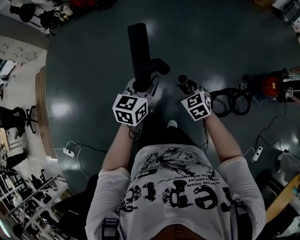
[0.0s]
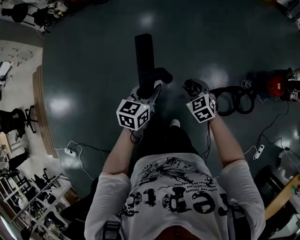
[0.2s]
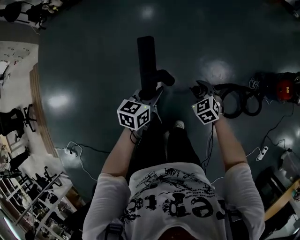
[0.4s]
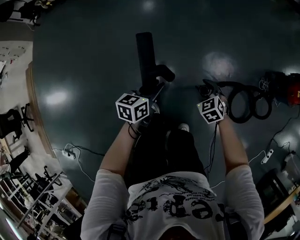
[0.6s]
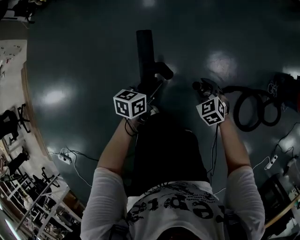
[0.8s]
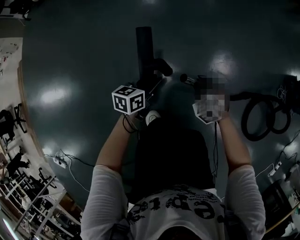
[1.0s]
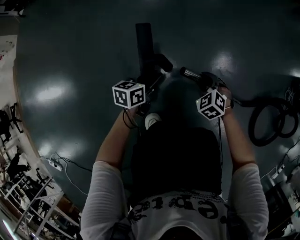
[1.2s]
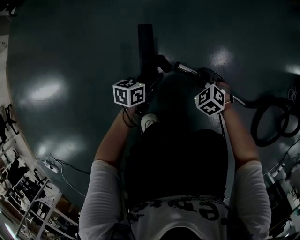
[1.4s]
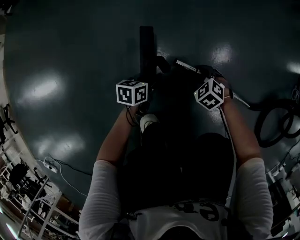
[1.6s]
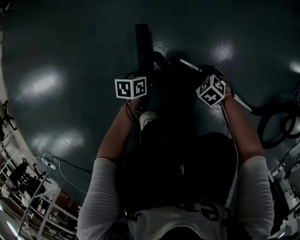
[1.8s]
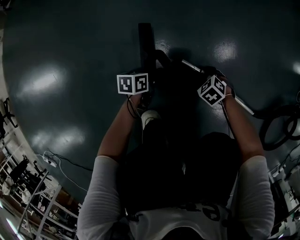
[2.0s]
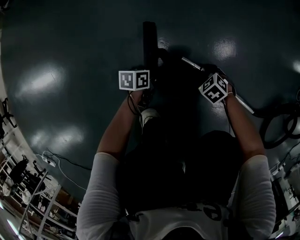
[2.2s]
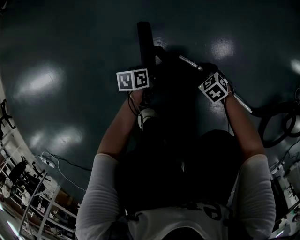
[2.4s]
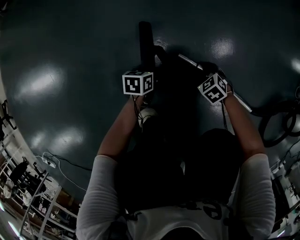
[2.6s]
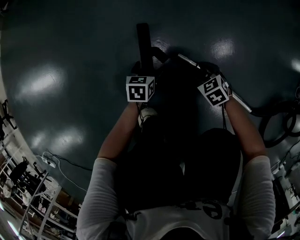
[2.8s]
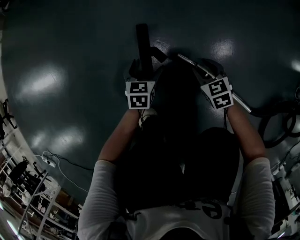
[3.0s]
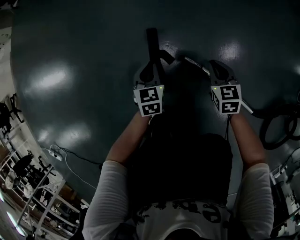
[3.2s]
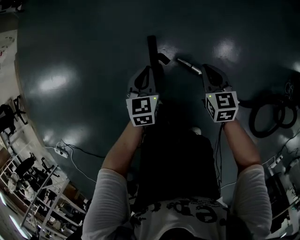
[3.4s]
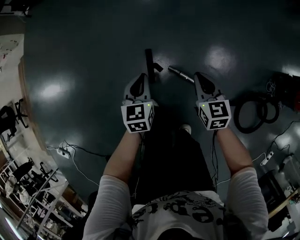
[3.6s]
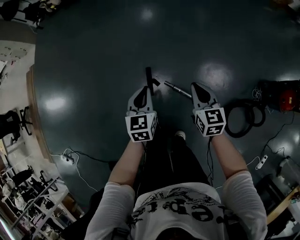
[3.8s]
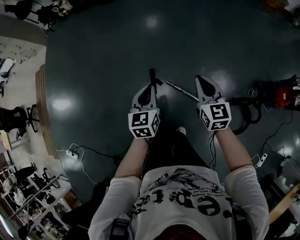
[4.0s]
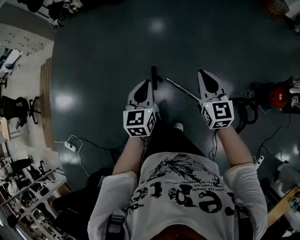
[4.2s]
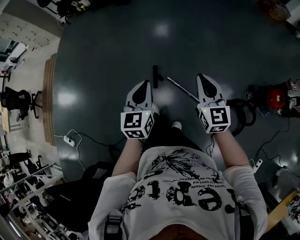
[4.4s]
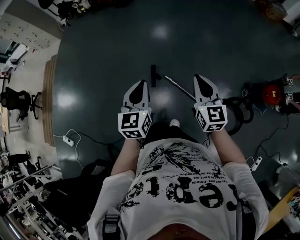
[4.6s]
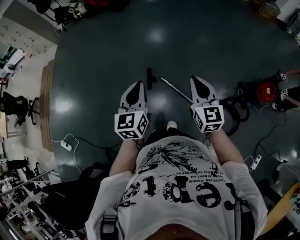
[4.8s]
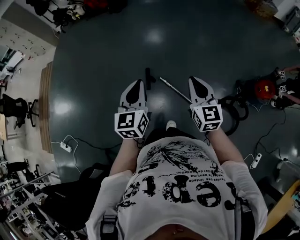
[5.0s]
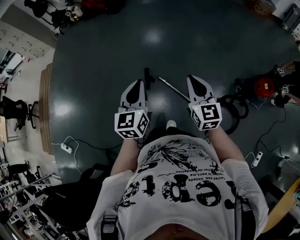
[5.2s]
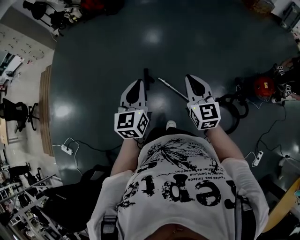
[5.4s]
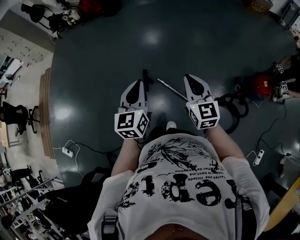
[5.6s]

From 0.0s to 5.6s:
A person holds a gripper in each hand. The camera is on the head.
From 0.0s to 1.4s: Both grippers travel together downward, approximately 80 cm. The left gripper turns by about 40 degrees, while the right gripper changes its angle by about 30 degrees.
From 1.4s to 2.8s: Both grippers move downward, about 10 cm. The left gripper turns by approximately 30 degrees, and opens up.
From 2.8s to 4.2s: The two grippers go roughly 90 cm upward. The left gripper points its fingers some 30 degrees further upward, and closes up; the right gripper points its fingers approximately 50 degrees further upward, and closes its fingers.
From 4.2s to 5.6s: The left gripper shifts about 15 cm backward and upward; the right gripper goes some 15 cm backward.

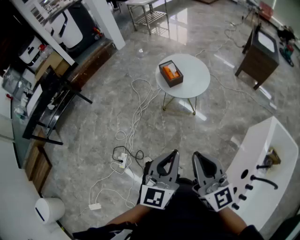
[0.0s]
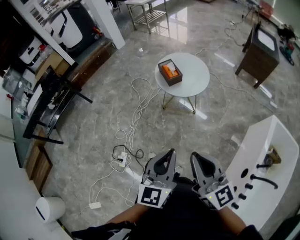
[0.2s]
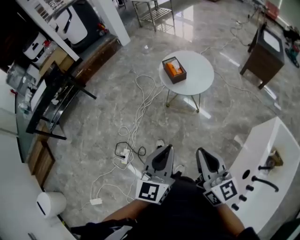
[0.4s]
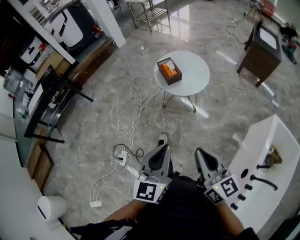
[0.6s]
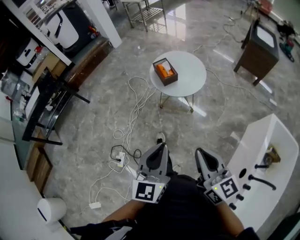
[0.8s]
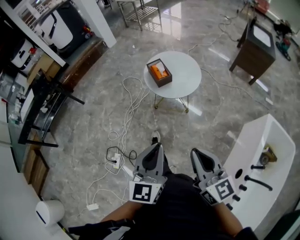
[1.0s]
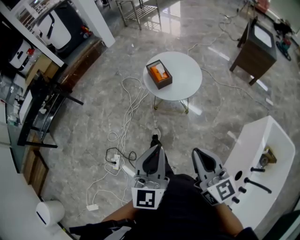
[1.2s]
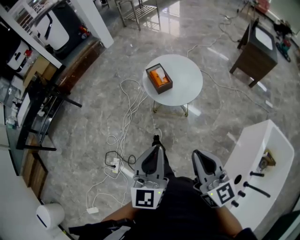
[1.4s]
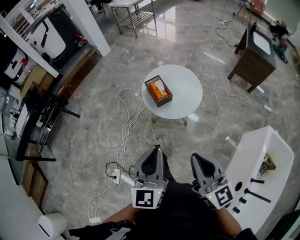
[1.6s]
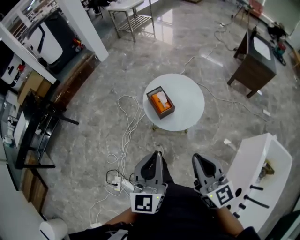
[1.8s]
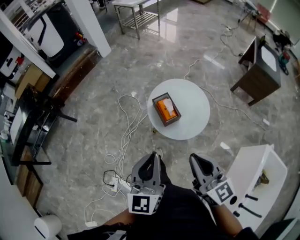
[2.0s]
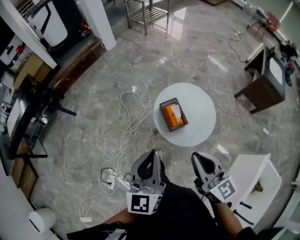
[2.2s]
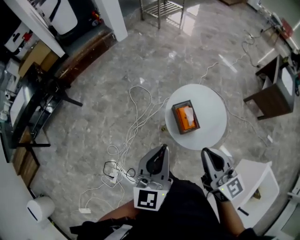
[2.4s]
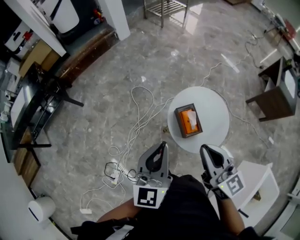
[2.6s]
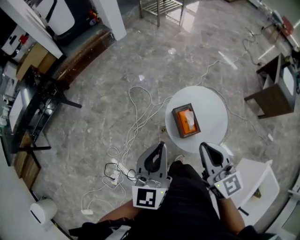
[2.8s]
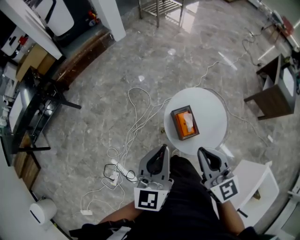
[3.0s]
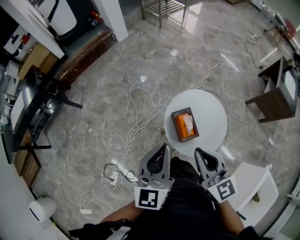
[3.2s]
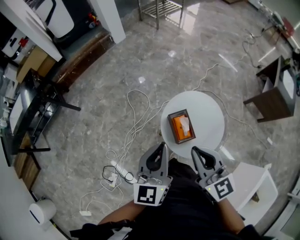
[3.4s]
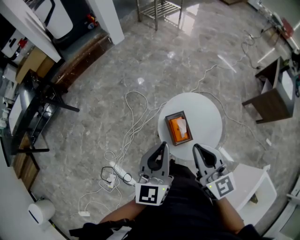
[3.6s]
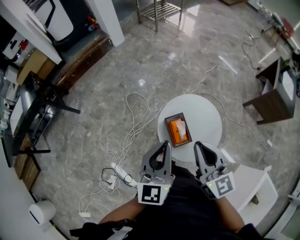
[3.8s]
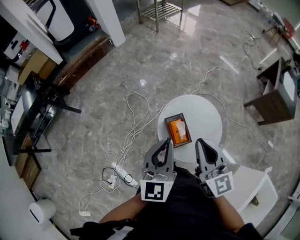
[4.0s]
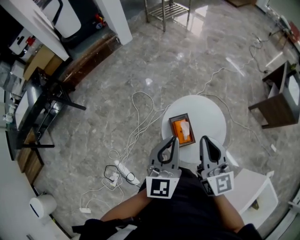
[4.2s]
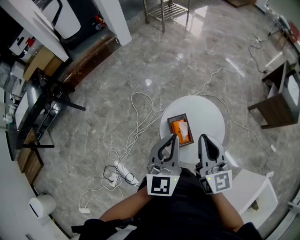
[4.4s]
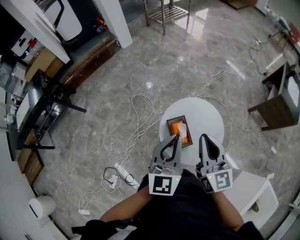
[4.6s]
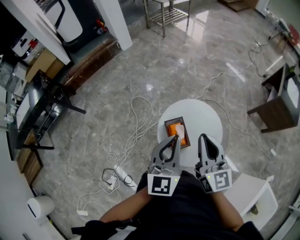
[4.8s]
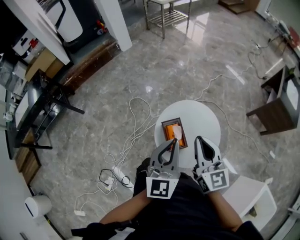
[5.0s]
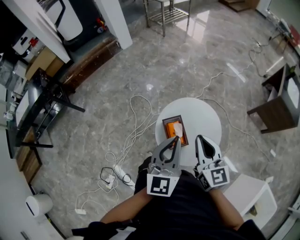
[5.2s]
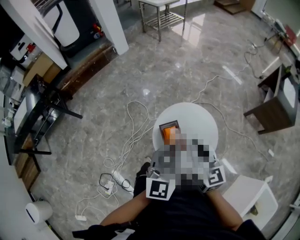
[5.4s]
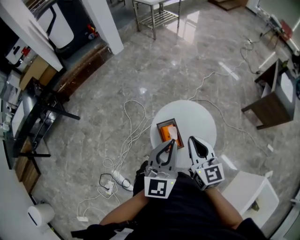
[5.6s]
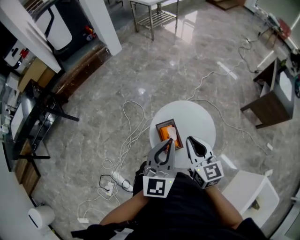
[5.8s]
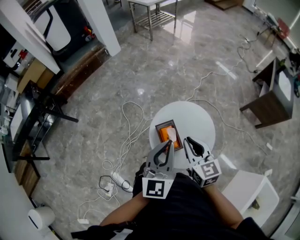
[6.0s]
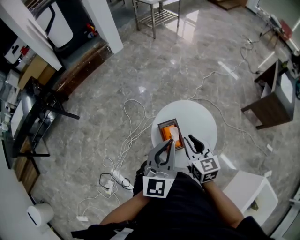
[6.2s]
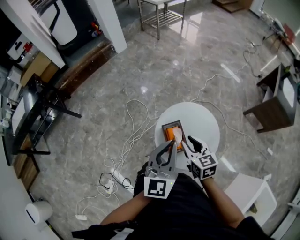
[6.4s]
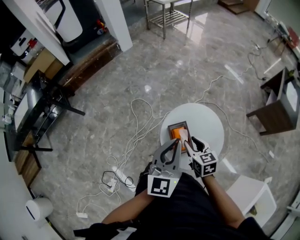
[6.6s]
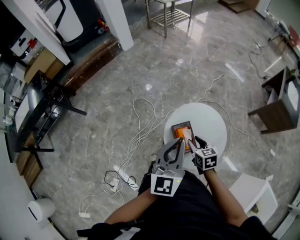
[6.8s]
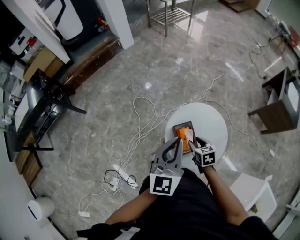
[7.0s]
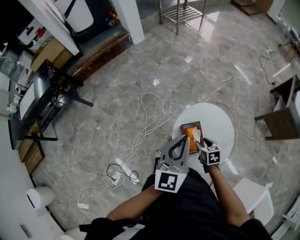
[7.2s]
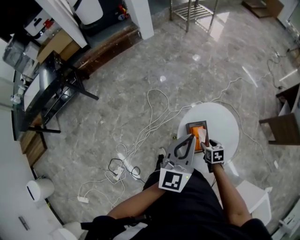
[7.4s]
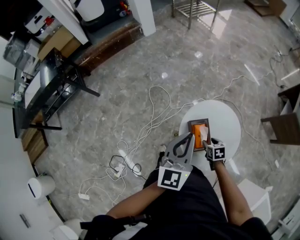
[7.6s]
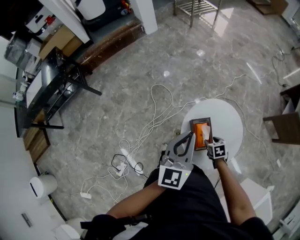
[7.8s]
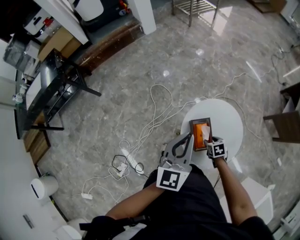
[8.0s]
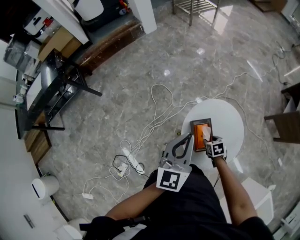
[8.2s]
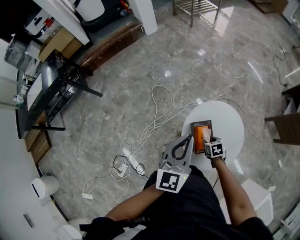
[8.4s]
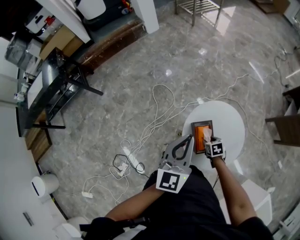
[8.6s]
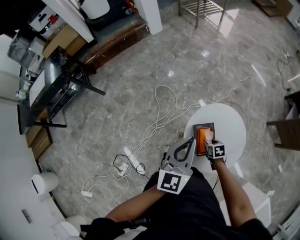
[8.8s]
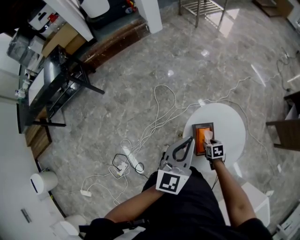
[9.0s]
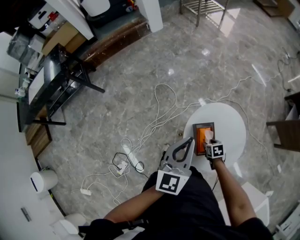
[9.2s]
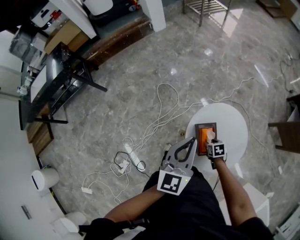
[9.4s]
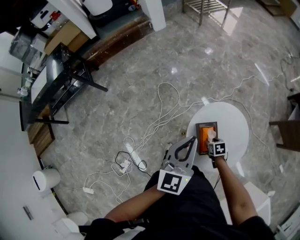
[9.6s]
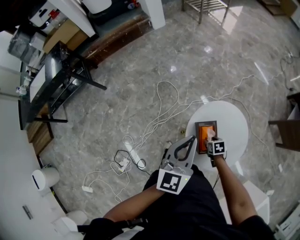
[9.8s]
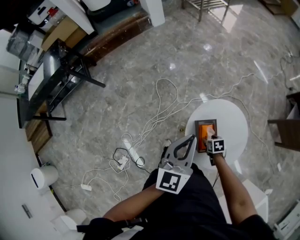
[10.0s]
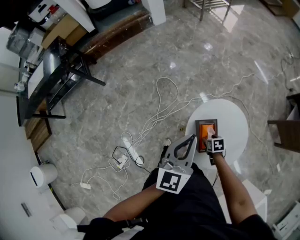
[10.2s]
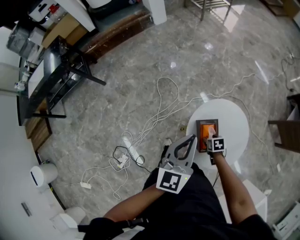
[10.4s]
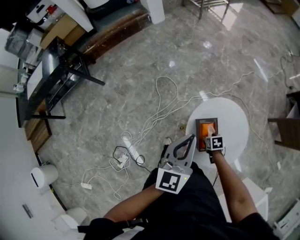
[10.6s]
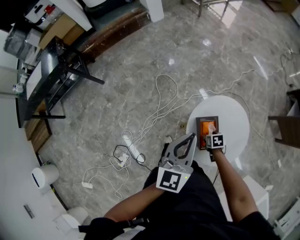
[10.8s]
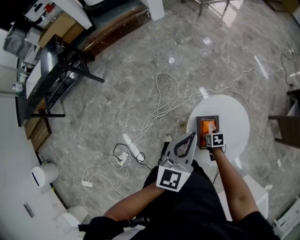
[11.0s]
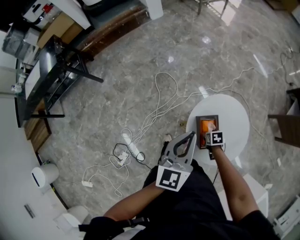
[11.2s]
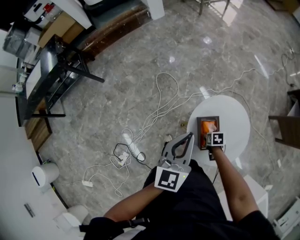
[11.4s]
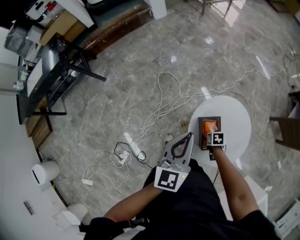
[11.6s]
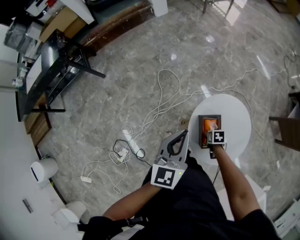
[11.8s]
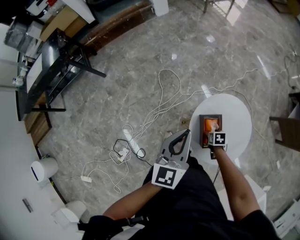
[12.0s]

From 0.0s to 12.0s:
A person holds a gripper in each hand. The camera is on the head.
From 0.0s to 1.6s: Both grippers travel together forward, roughly 20 cm.
From 1.6s to 3.0s: Both grippers travel together forward, roughly 35 cm.
From 3.0s to 4.4s: Both grippers move to the right and forward, about 10 cm.
From 4.4s to 6.0s: The right gripper heads downward, covering roughly 10 cm.
From 6.0s to 7.6s: The left gripper travels to the left by about 10 cm; the right gripper shifts approximately 25 cm downward, tips its fingers downward by some 40 degrees, and opens up.
From 7.6s to 9.0s: The grippers move only a little.
From 9.0s to 10.4s: The grippers move only a little.
From 10.4s to 12.0s: The grippers stay close to where they were, moving slightly.

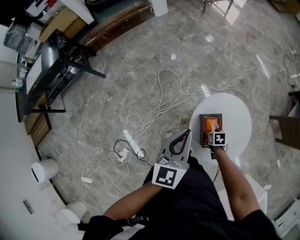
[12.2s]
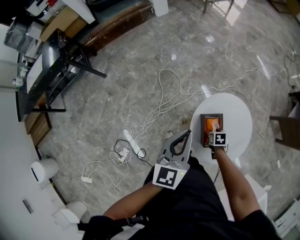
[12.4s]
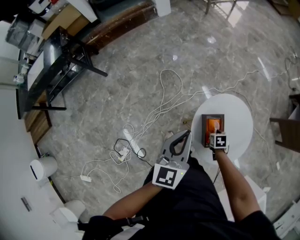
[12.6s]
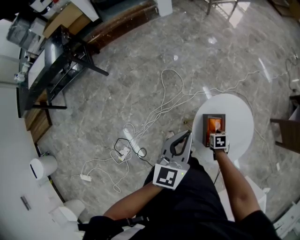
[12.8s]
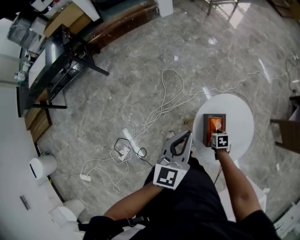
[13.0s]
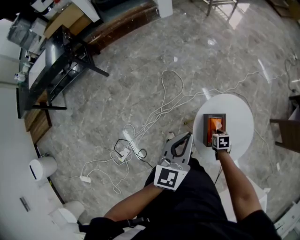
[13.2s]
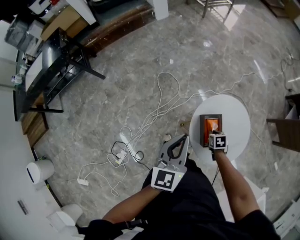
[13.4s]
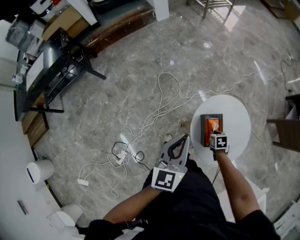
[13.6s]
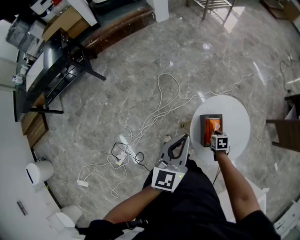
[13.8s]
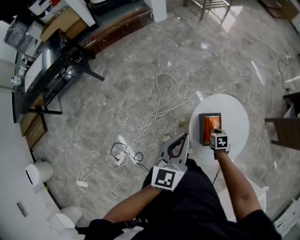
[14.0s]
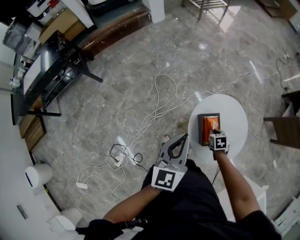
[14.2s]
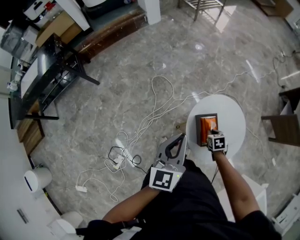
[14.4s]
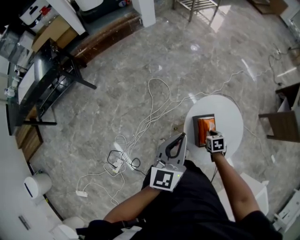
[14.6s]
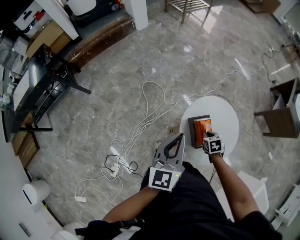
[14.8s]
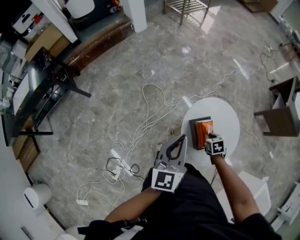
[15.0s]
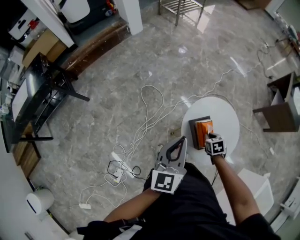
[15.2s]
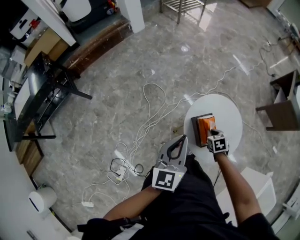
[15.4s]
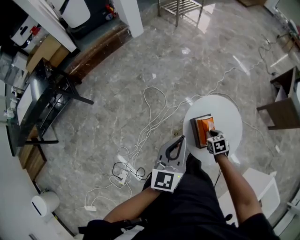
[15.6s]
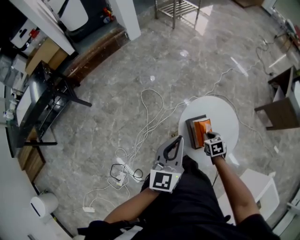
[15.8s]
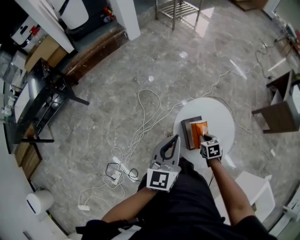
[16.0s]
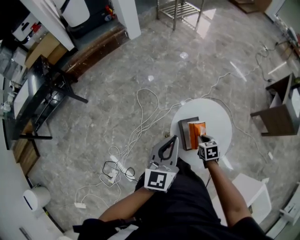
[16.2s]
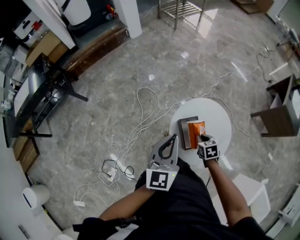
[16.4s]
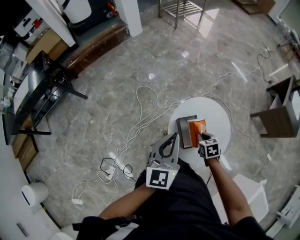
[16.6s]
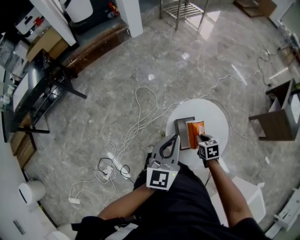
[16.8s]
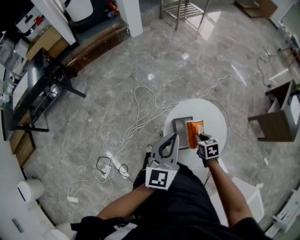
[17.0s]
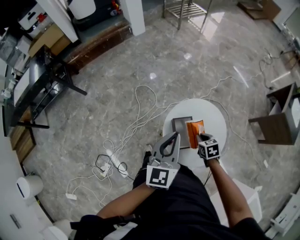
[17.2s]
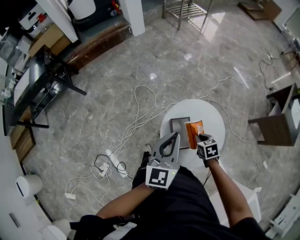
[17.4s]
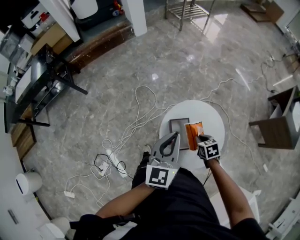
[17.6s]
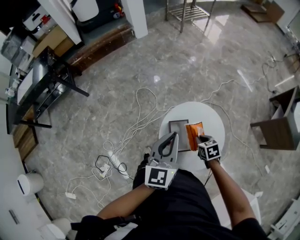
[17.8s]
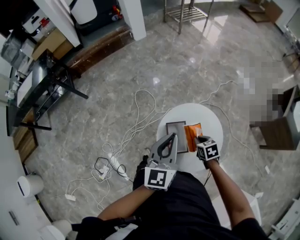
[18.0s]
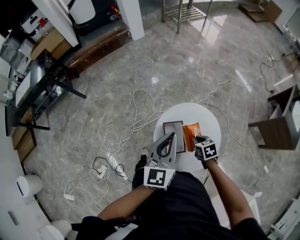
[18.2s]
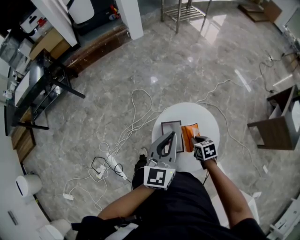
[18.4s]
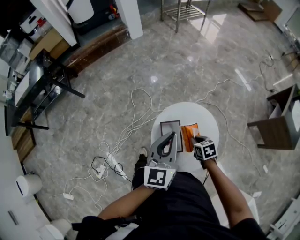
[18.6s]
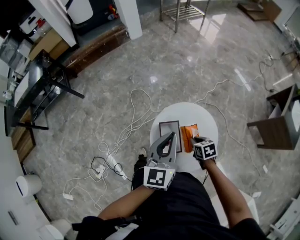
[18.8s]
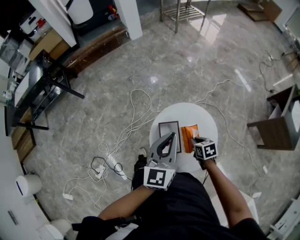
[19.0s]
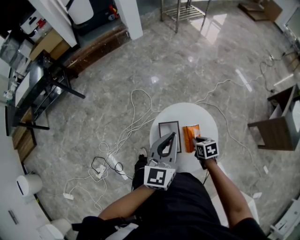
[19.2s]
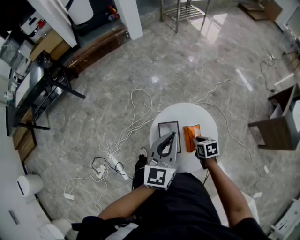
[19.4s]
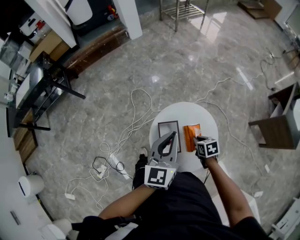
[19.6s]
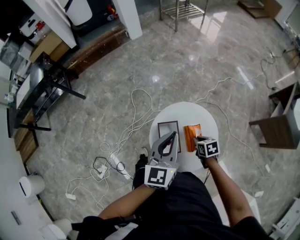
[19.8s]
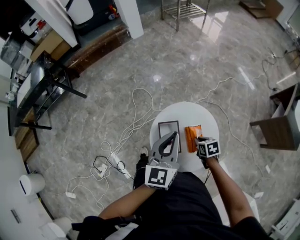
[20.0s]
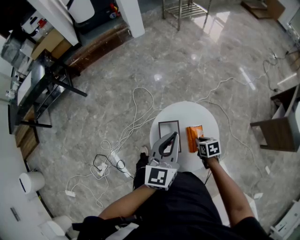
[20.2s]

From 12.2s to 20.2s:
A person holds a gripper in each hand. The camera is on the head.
From 12.2s to 13.8s: The right gripper closes its fingers.
From 13.8s to 15.4s: The right gripper goes approximately 5 cm upward.
From 15.4s to 17.0s: The right gripper moves to the right, about 5 cm; the left gripper travels to the right by roughly 10 cm.
From 17.0s to 18.6s: The two grippers go roughly 5 cm to the right.
From 18.6s to 20.2s: The right gripper moves about 5 cm.
